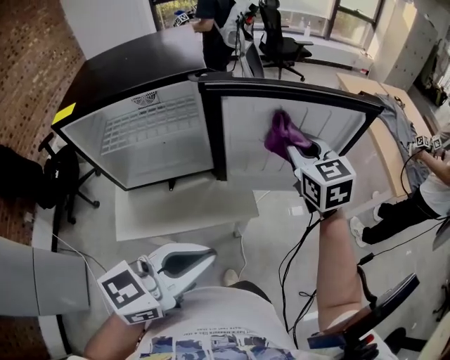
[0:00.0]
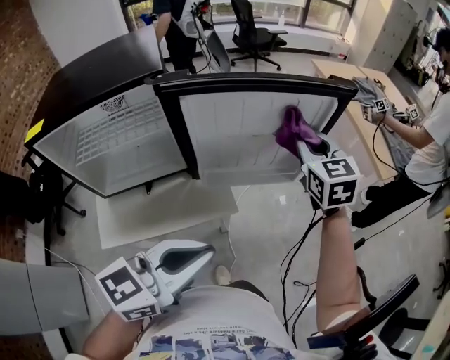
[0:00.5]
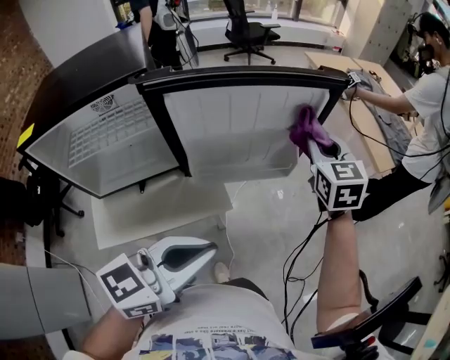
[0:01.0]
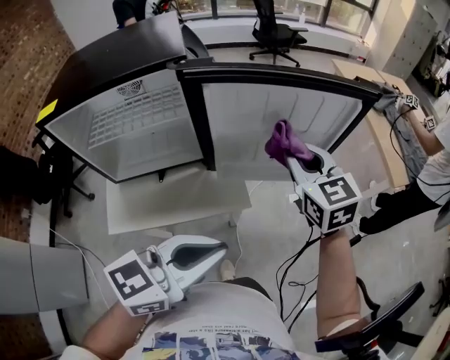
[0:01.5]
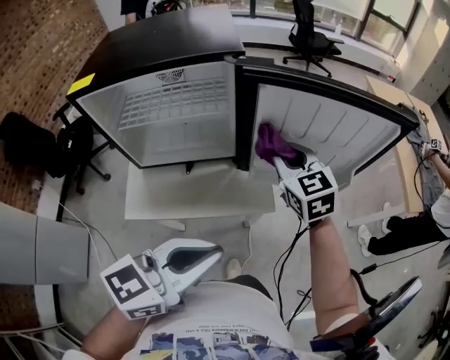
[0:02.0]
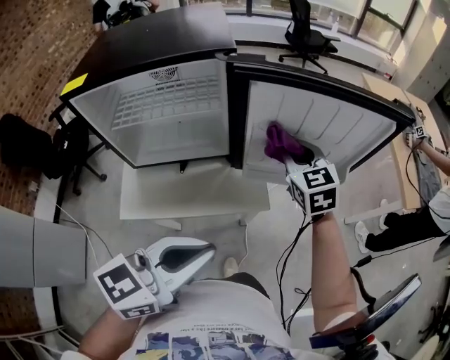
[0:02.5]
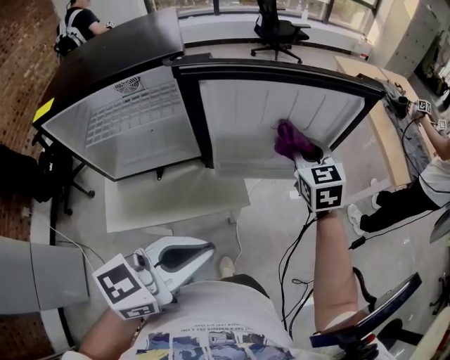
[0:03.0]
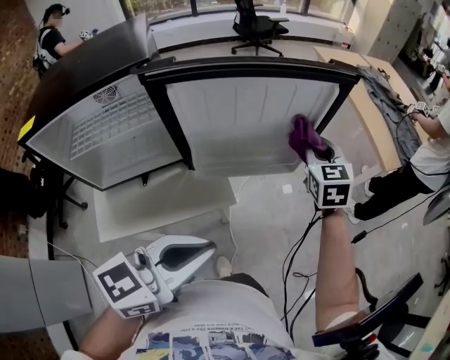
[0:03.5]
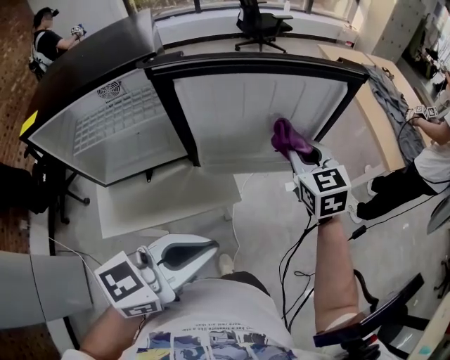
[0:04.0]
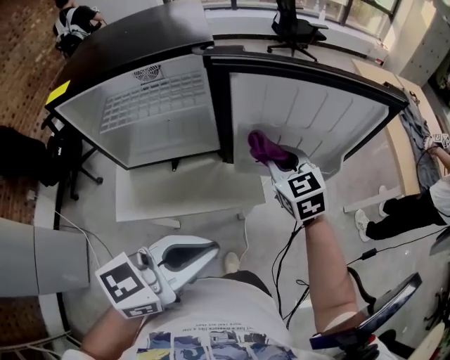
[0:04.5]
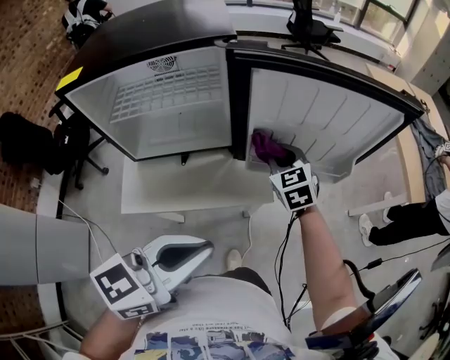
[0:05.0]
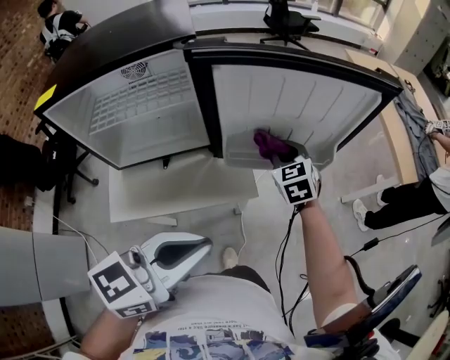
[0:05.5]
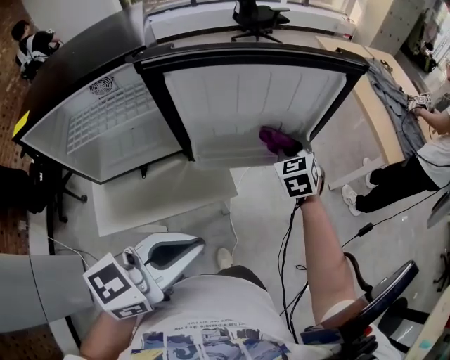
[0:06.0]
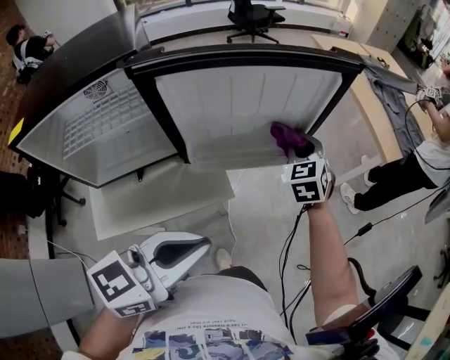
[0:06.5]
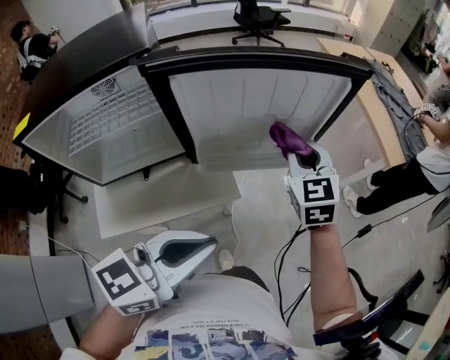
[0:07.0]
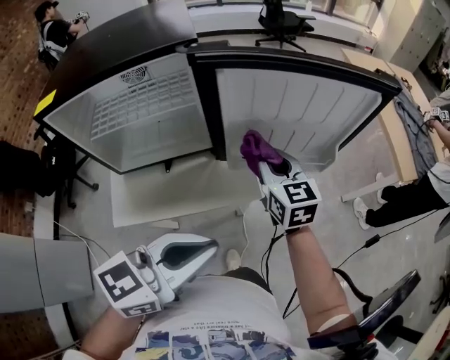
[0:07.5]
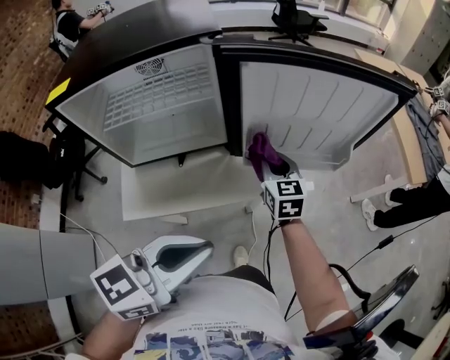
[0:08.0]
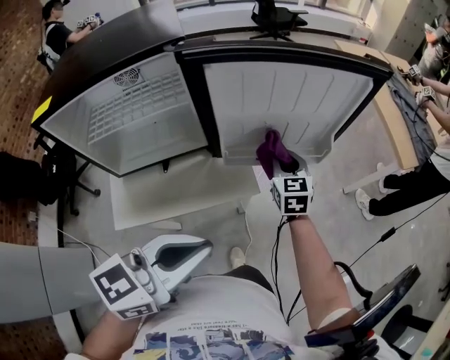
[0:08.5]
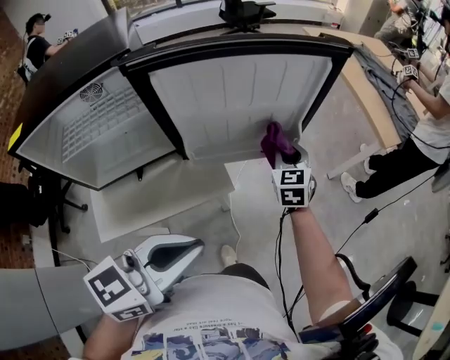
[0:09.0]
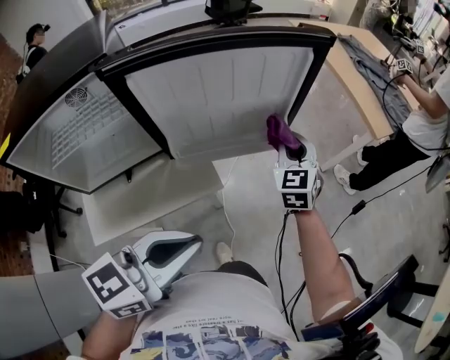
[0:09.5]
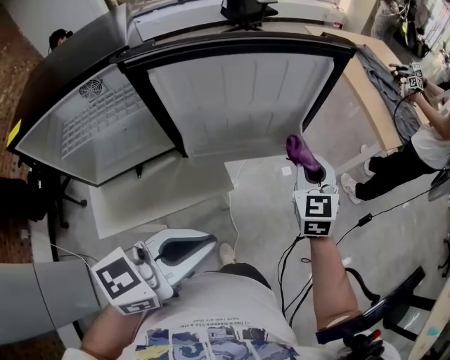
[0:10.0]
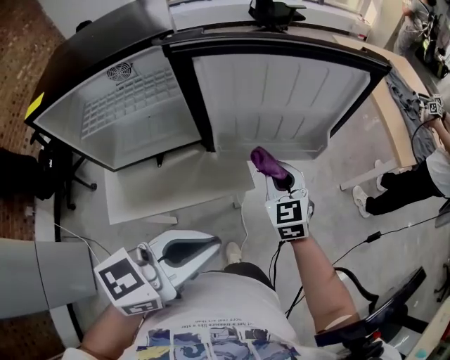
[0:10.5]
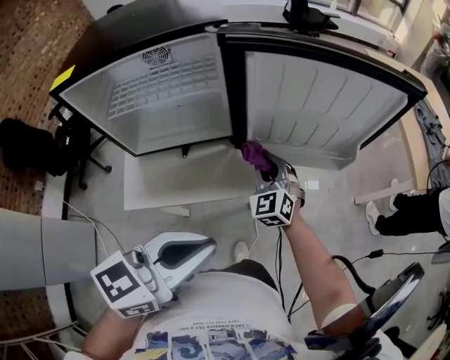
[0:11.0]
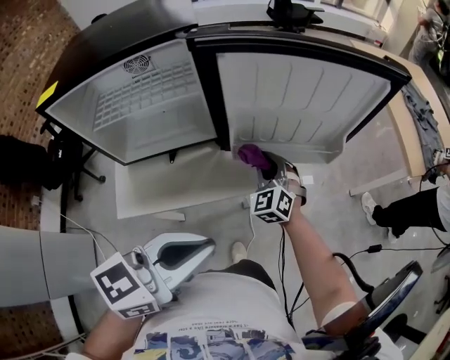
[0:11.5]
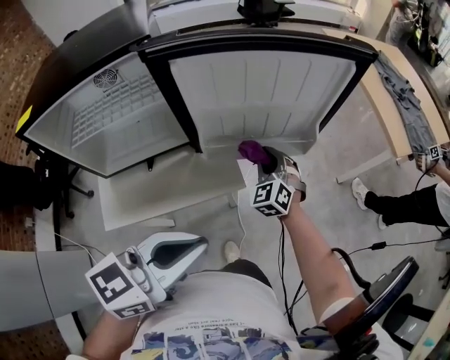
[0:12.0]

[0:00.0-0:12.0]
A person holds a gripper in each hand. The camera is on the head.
0:00.0 to 0:02.0: The left gripper travels to the right and back again, approximately 5 cm each way. Meanwhile the right gripper travels downward by approximately 5 cm, and travels to the right and back again, roughly 15 cm each way.
0:02.0 to 0:04.0: The left gripper is displaced to the right by roughly 5 cm, while the right gripper heads to the right, covering about 15 cm.
0:04.0 to 0:06.0: The right gripper heads downward, covering approximately 10 cm, and moves some 15 cm to the left and comes back.
0:06.0 to 0:08.0: The right gripper heads to the left and backward, covering roughly 15 cm, and turns by some 30 degrees, while the left gripper travels to the left by about 5 cm.
0:08.0 to 0:10.0: The right gripper is displaced to the right by about 25 cm, and changes its angle by about 30 degrees, while the left gripper is displaced to the right and forward by about 10 cm.
0:10.0 to 0:12.0: The right gripper moves to the left and downward, approximately 20 cm, and swivels roughly 30 degrees.

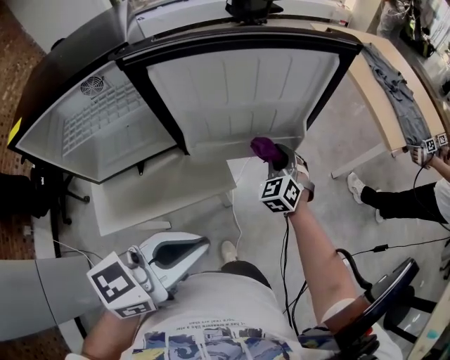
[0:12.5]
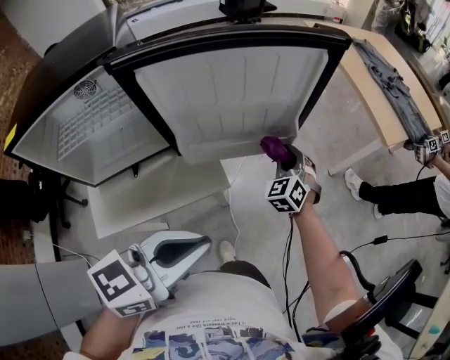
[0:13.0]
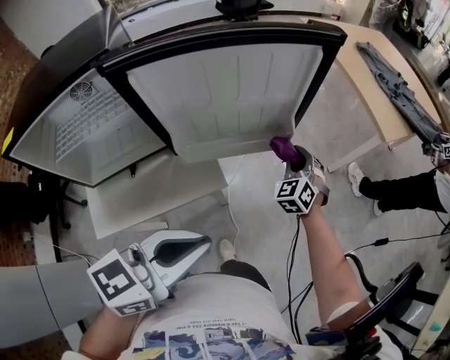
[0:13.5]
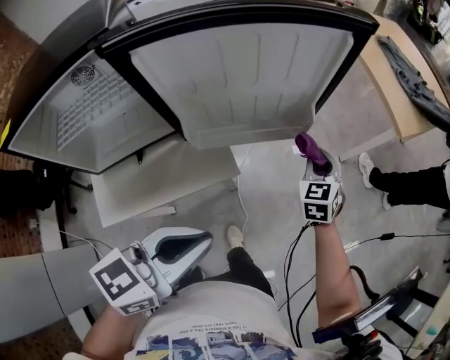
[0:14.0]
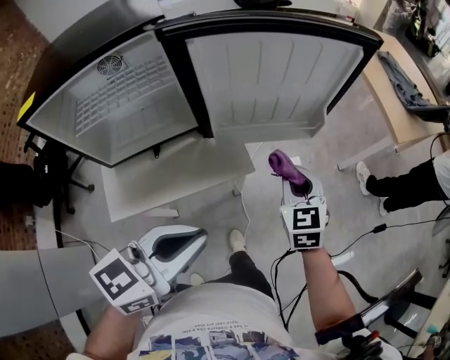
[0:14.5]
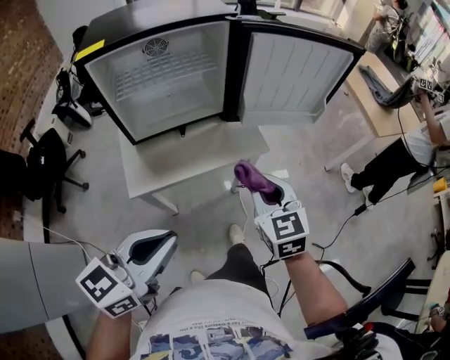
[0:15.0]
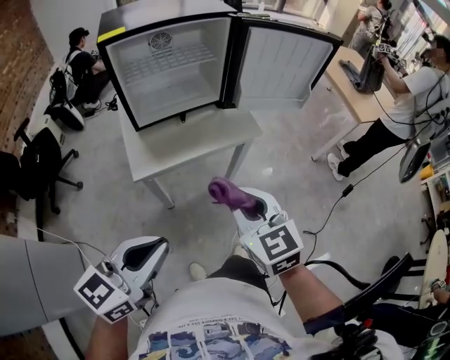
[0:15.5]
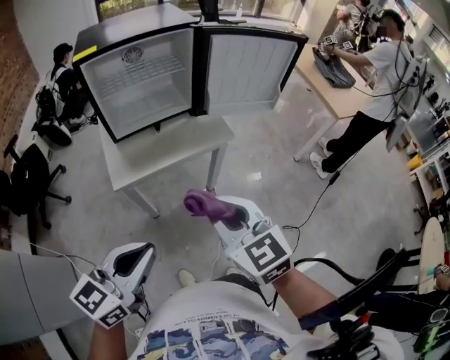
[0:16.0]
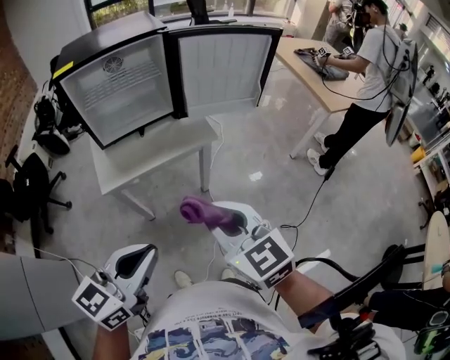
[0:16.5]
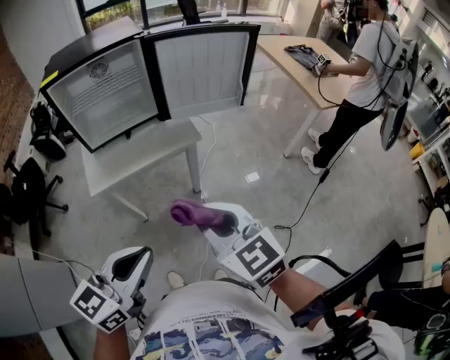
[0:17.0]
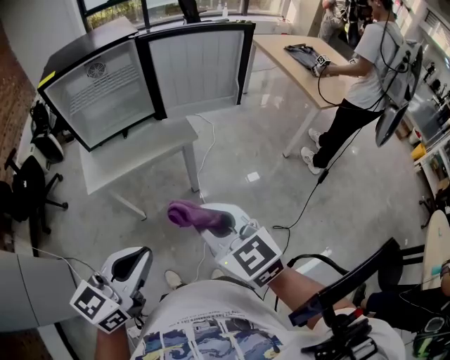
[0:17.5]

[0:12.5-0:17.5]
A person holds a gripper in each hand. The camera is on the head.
0:12.5 to 0:15.0: The right gripper moves backward and upward, approximately 35 cm, and turns by some 30 degrees, while the left gripper goes about 30 cm backward and to the left.
0:15.0 to 0:17.5: The left gripper goes some 20 cm to the right and backward, while the right gripper shifts some 20 cm backward and to the right.

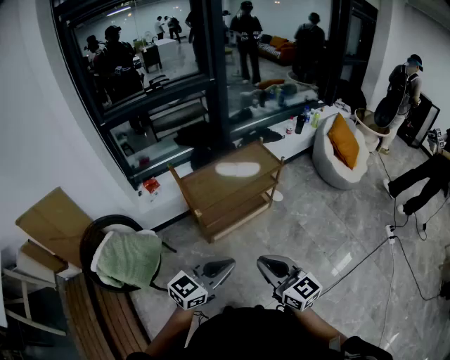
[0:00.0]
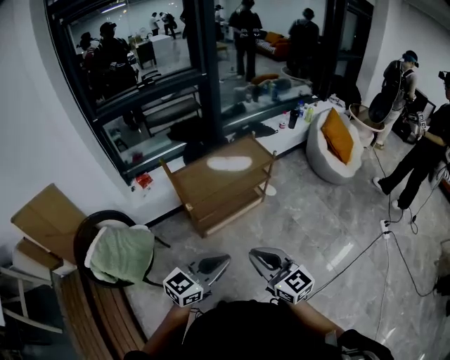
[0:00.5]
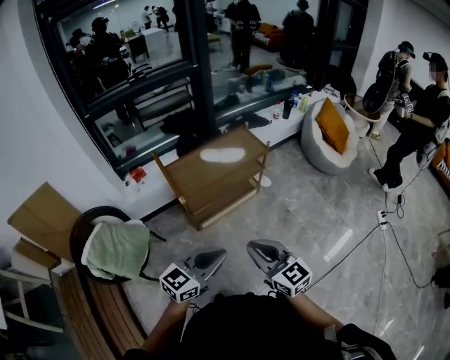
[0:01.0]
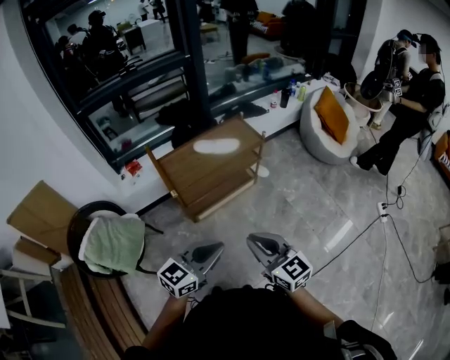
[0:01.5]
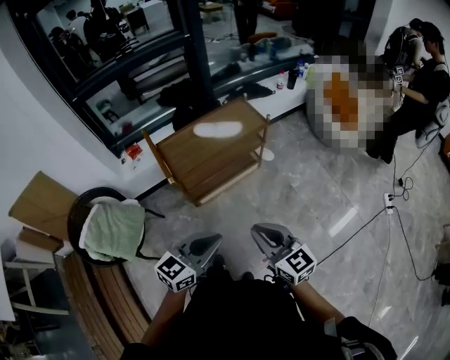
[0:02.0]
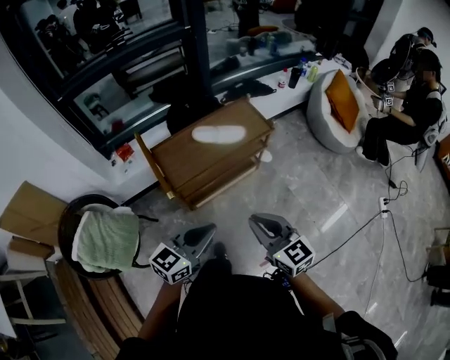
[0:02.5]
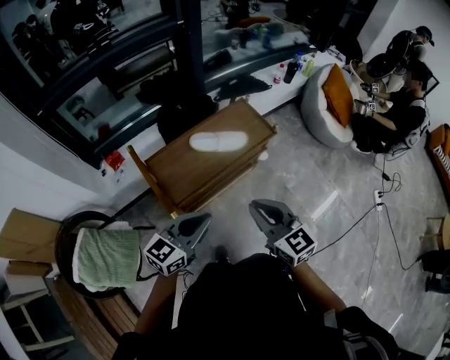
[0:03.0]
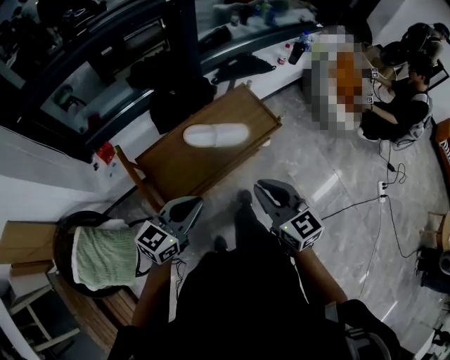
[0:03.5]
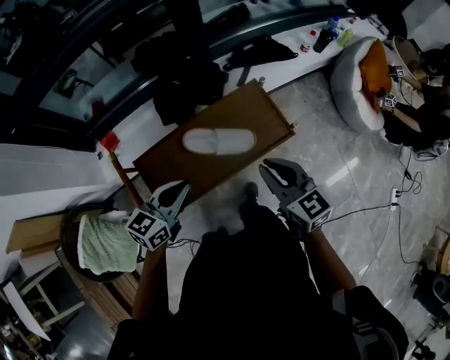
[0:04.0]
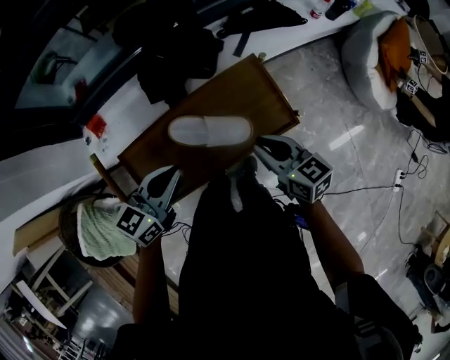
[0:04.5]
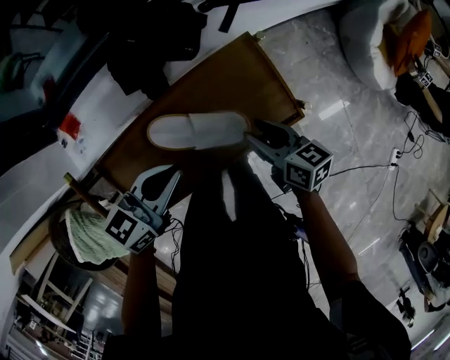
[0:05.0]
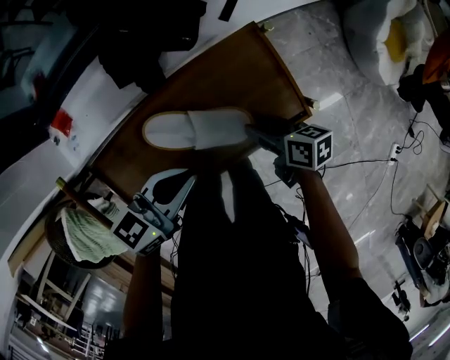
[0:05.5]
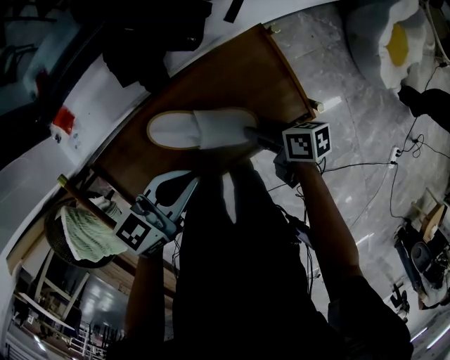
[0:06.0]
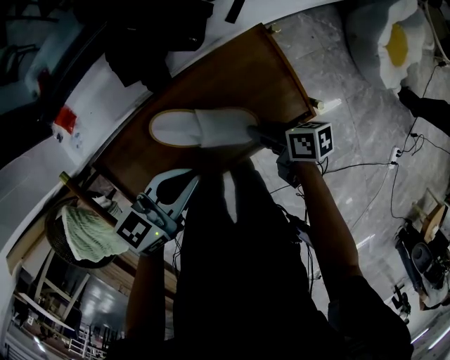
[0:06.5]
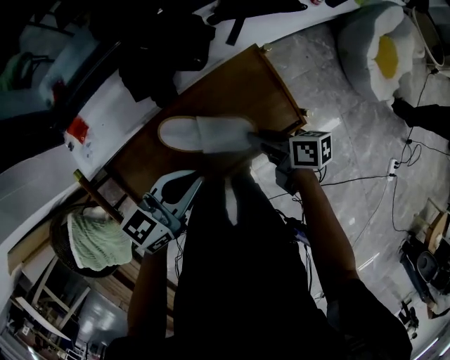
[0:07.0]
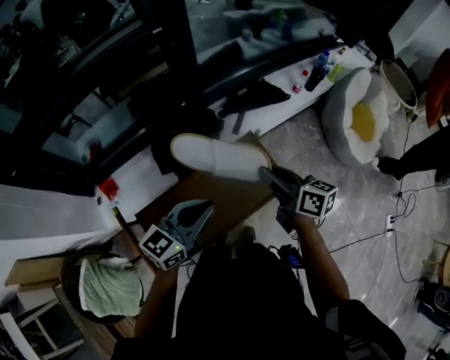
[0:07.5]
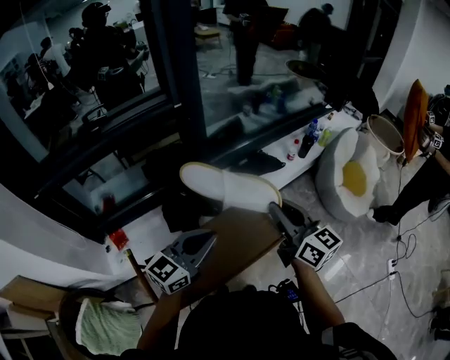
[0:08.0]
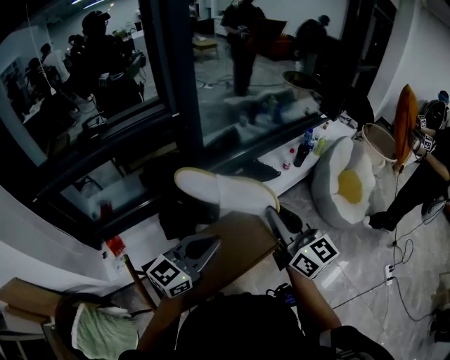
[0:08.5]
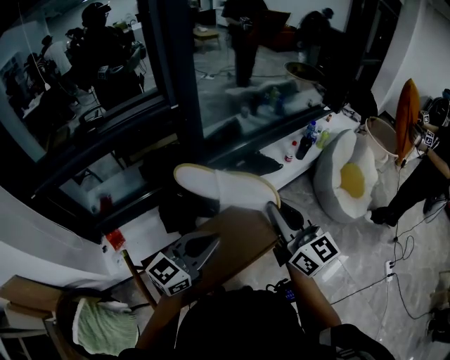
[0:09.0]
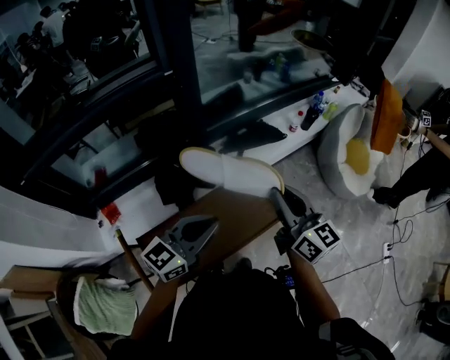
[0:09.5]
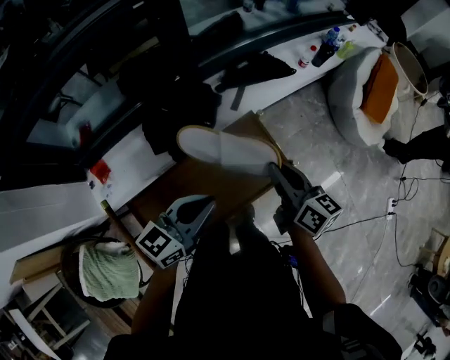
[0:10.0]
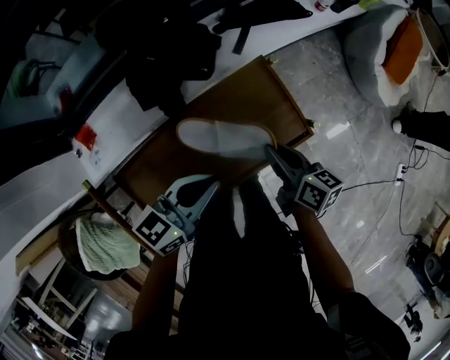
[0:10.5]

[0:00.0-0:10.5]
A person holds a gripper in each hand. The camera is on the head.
0:00.0 to 0:02.0: Both grippers move to the right, some 5 cm.
0:02.0 to 0:04.0: The pair of grippers is taken forward, about 50 cm.
0:04.0 to 0:06.5: The left gripper shifts by roughly 15 cm; the right gripper shifts about 25 cm downward, rotates around the line of its fingers by about 50 degrees, clockwise from behind, and opens, then closes once more.
0:06.5 to 0:08.5: The right gripper goes approximately 50 cm upward, and angles its fingers upward, by some 50 degrees, while the left gripper shifts roughly 25 cm upward, and changes its angle by about 40 degrees.
0:08.5 to 0:10.5: The right gripper is displaced downward by roughly 40 cm, and tilts its fingers roughly 40 degrees downward, while the left gripper moves downward, some 25 cm, and changes its angle by roughly 30 degrees.
